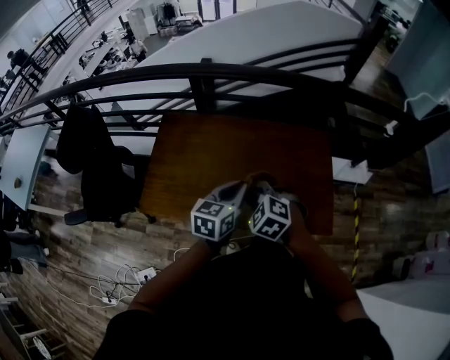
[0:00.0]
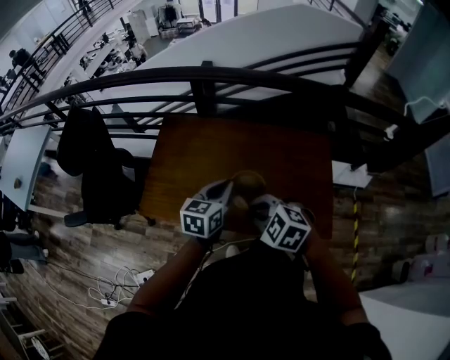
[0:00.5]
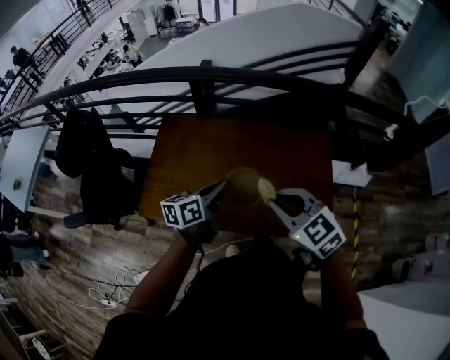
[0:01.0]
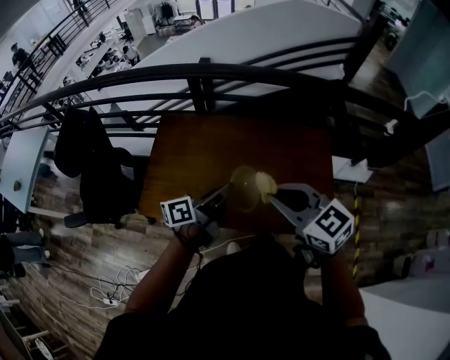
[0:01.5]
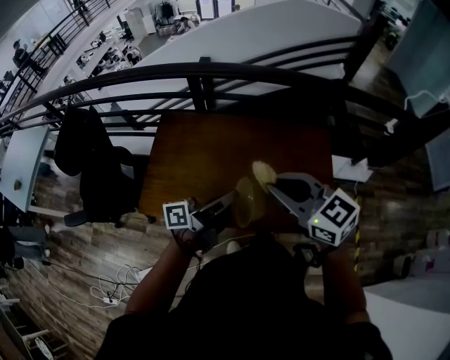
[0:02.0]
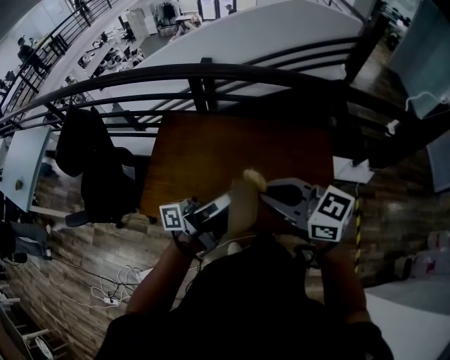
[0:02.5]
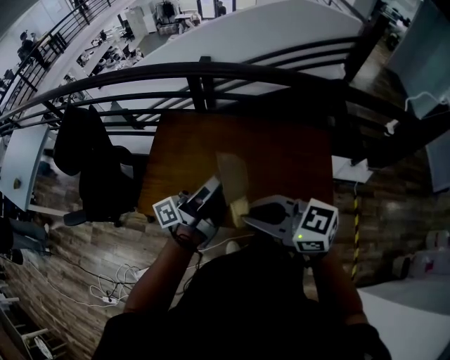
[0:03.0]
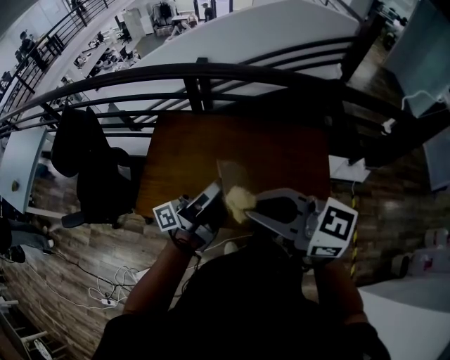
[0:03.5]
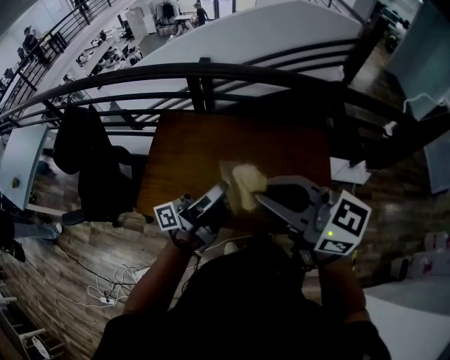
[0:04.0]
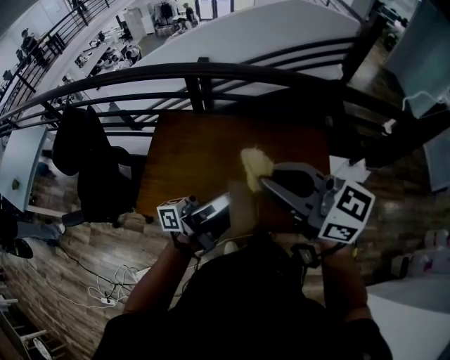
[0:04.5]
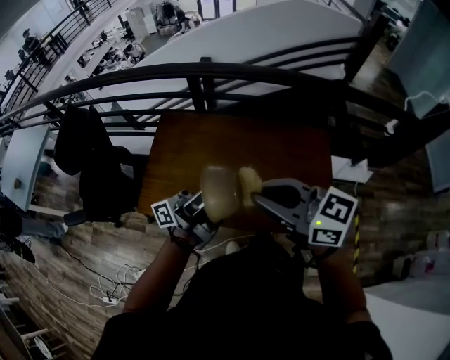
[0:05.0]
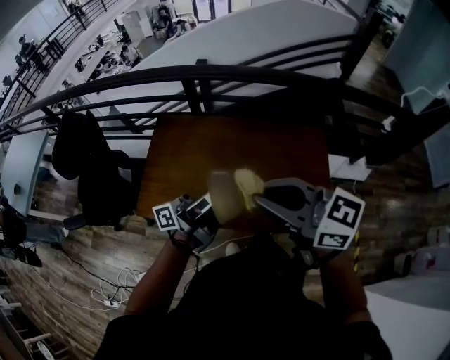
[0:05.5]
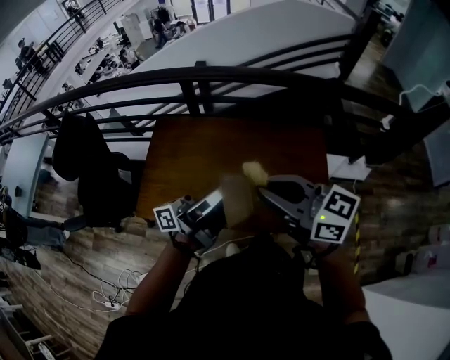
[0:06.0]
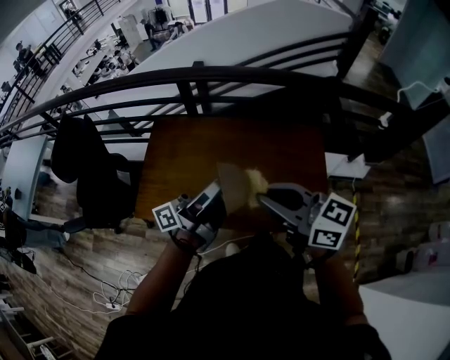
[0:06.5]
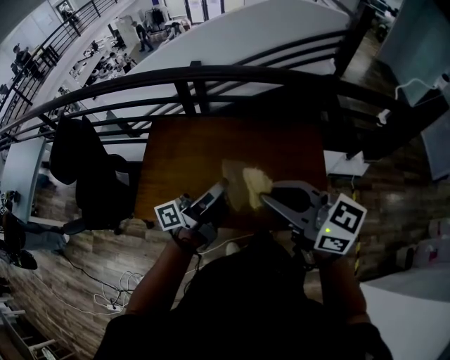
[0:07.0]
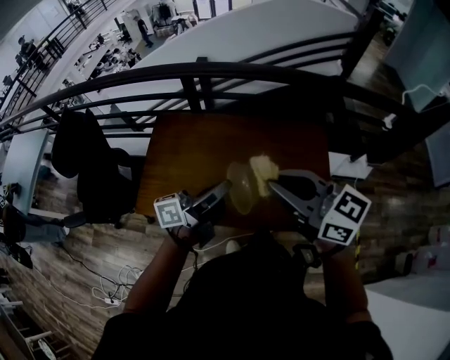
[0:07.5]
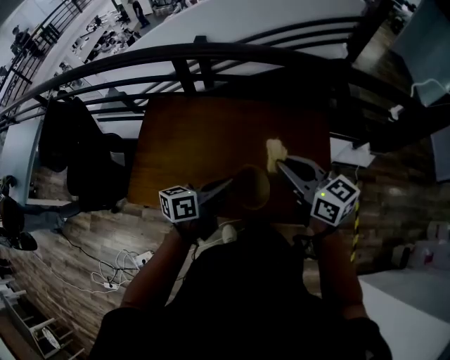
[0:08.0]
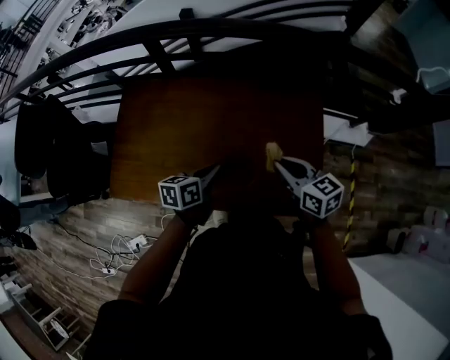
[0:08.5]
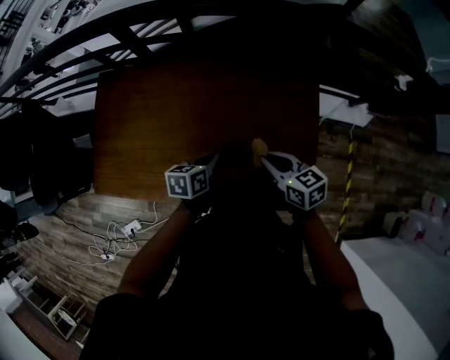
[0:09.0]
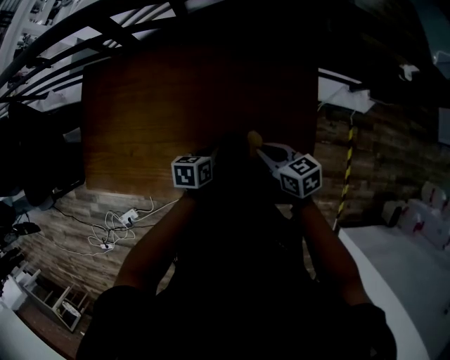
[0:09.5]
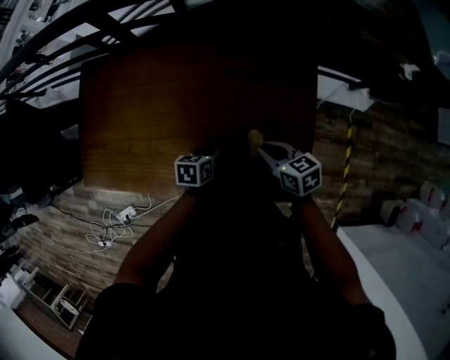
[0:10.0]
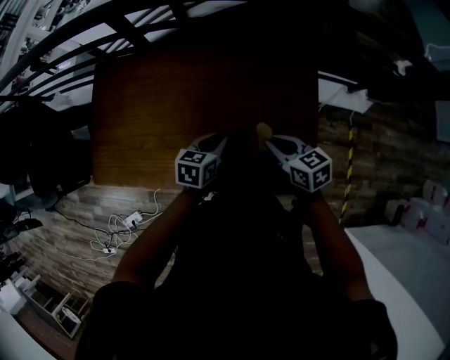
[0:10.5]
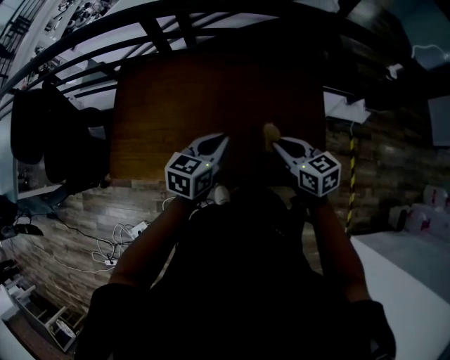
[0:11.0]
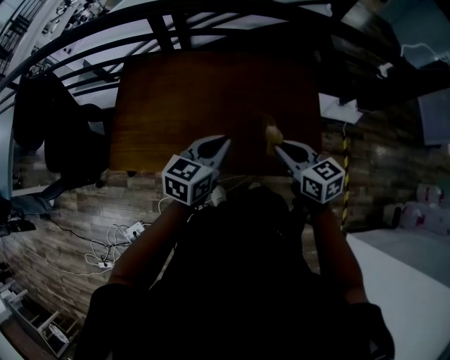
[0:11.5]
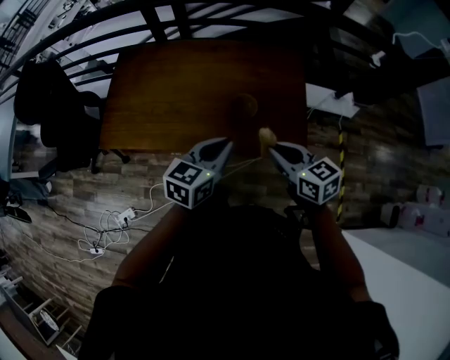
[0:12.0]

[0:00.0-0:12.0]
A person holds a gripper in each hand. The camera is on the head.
0:00.0 to 0:02.0: The left gripper changes place by roughly 5 cm, and angles its fingers upward, by about 40 degrees; the right gripper shifts about 15 cm upward, and angles its fingers upward, by approximately 40 degrees.
0:02.0 to 0:04.0: Both grippers move upward, some 10 cm. The left gripper rotates some 20 degrees.
0:04.0 to 0:06.0: The right gripper changes place by about 5 cm.
0:06.0 to 0:08.0: The right gripper heads downward, to the right and forward, covering about 15 cm. Meanwhile the left gripper heads downward, covering about 15 cm, and tilts its fingers approximately 50 degrees downward.
0:08.0 to 0:10.0: Both grippers travel together downward and to the right, approximately 35 cm. The left gripper tips its fingers downward by some 40 degrees, while the right gripper swivels approximately 30 degrees.
0:10.0 to 0:12.0: The left gripper heads upward and backward, covering about 35 cm, and turns by some 40 degrees. Meanwhile the right gripper heads backward and upward, covering roughly 30 cm.

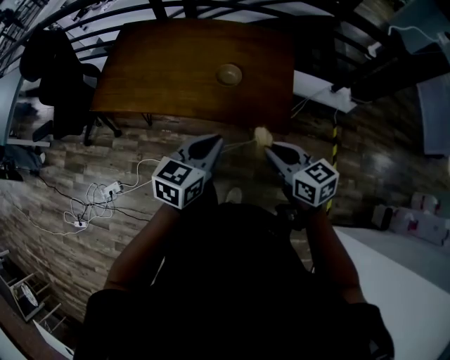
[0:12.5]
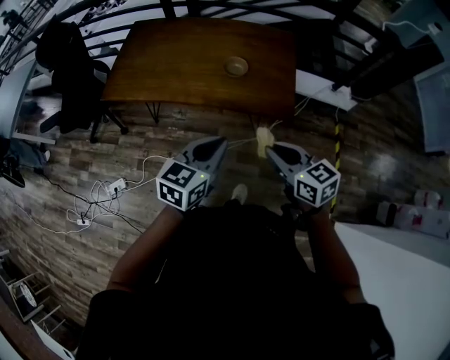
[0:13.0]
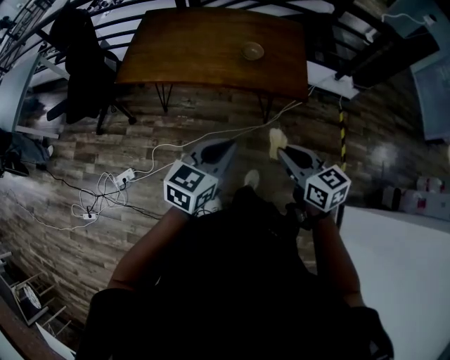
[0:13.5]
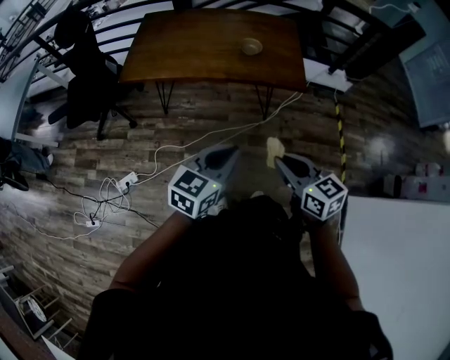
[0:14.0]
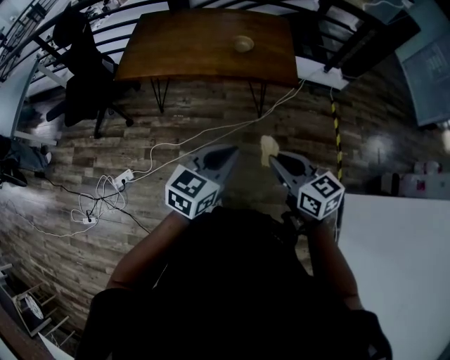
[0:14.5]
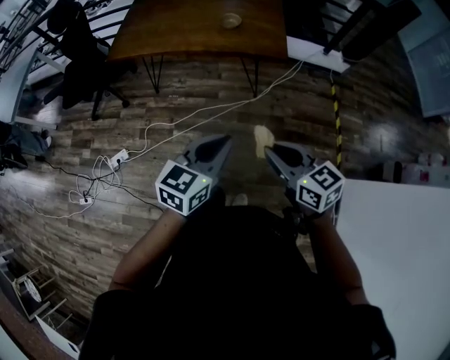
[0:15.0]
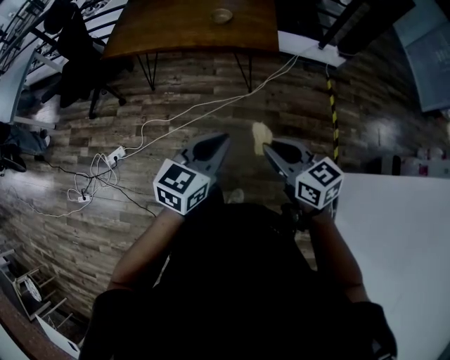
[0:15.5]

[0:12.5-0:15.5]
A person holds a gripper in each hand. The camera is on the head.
0:12.5 to 0:14.0: The two grippers go about 30 cm backward and to the left.
0:14.0 to 0:15.5: The right gripper moves backward and to the right, roughly 20 cm; the left gripper travels to the right and backward by roughly 20 cm.

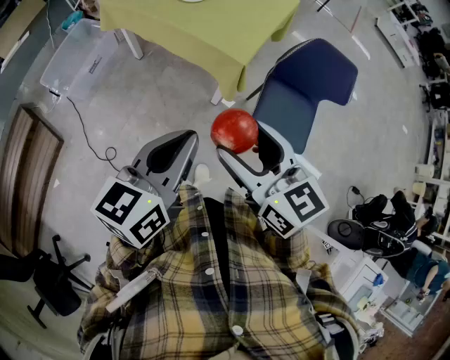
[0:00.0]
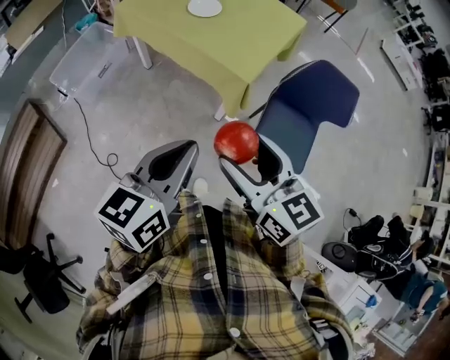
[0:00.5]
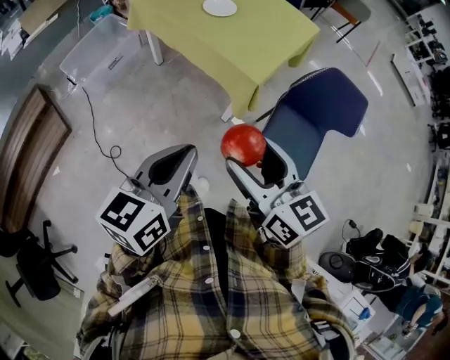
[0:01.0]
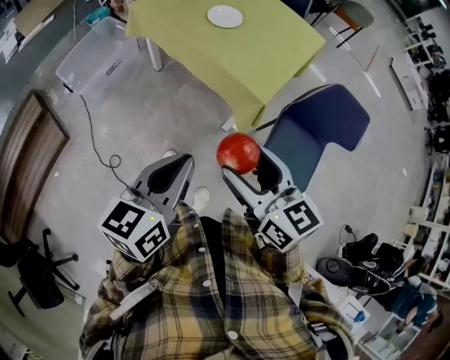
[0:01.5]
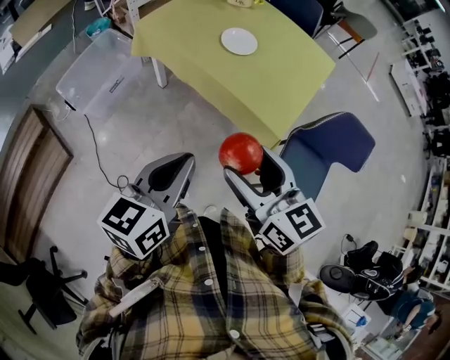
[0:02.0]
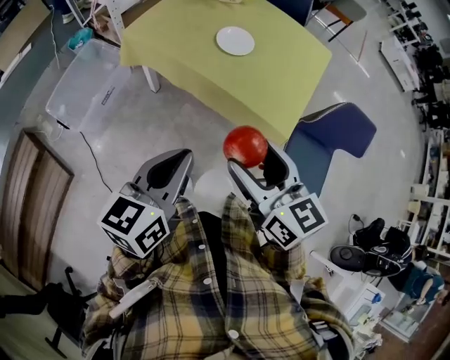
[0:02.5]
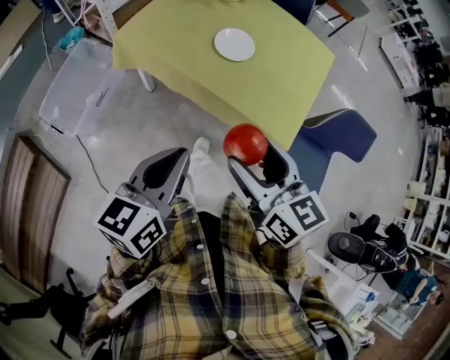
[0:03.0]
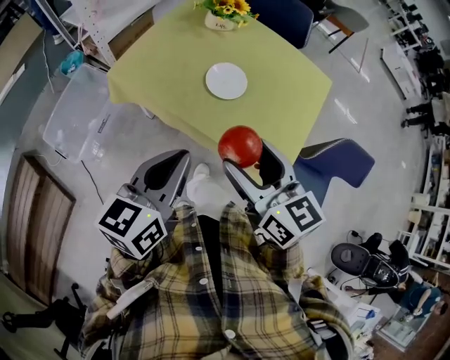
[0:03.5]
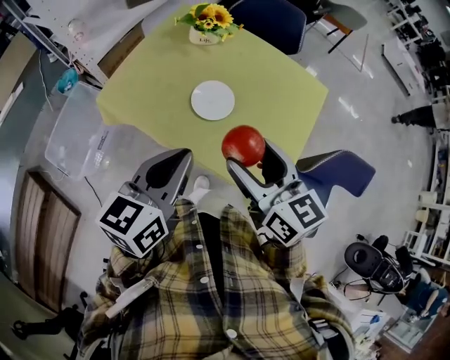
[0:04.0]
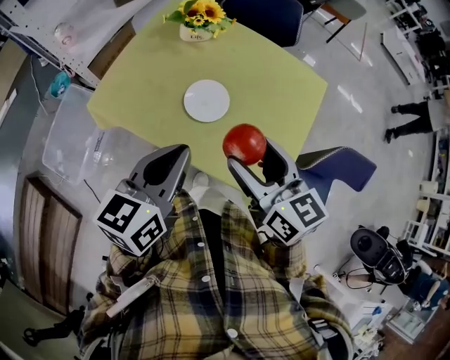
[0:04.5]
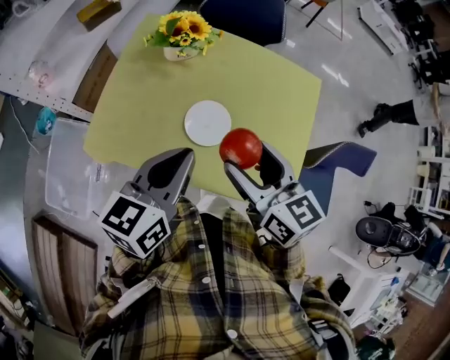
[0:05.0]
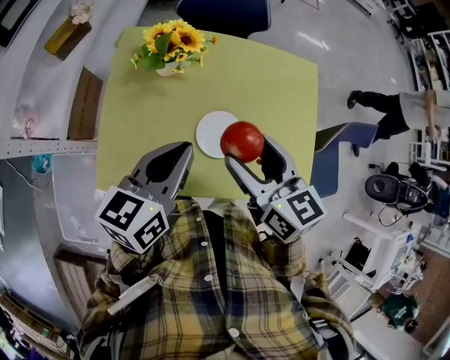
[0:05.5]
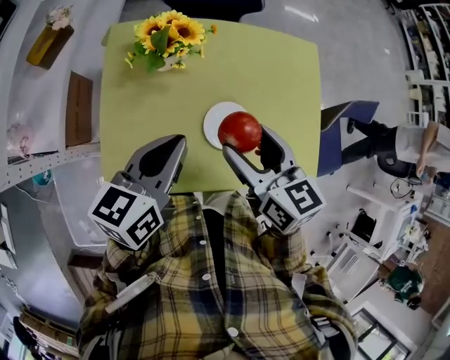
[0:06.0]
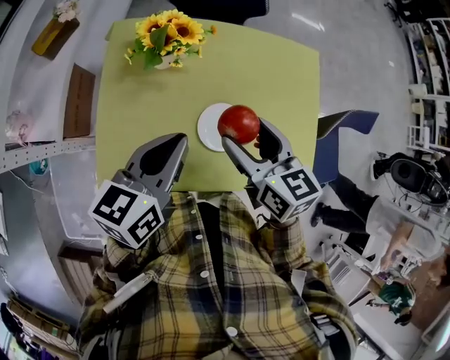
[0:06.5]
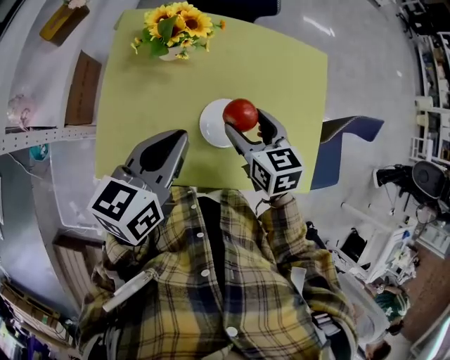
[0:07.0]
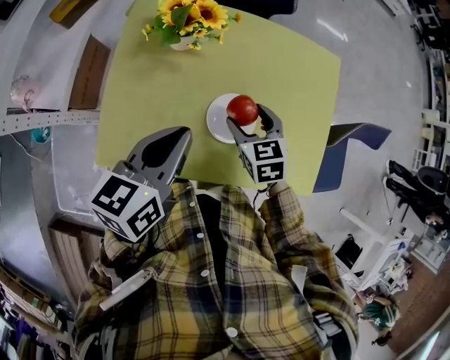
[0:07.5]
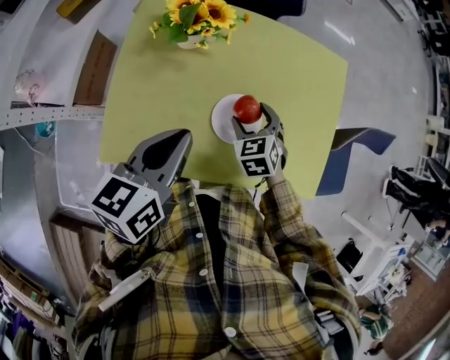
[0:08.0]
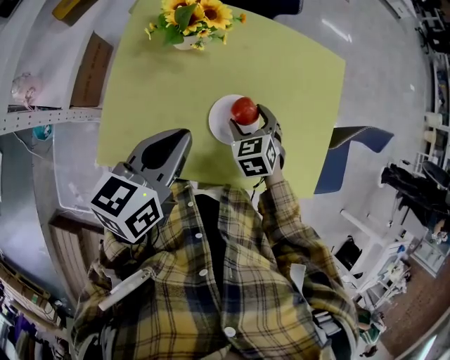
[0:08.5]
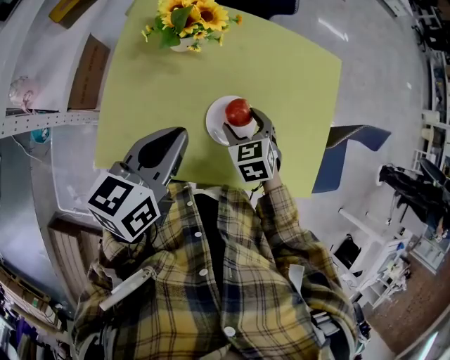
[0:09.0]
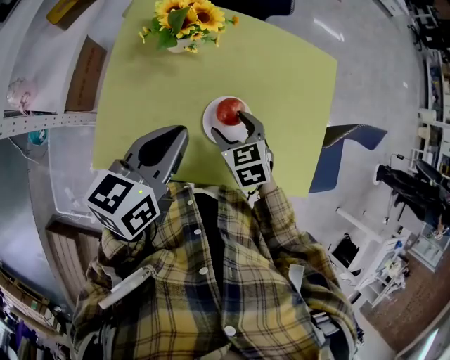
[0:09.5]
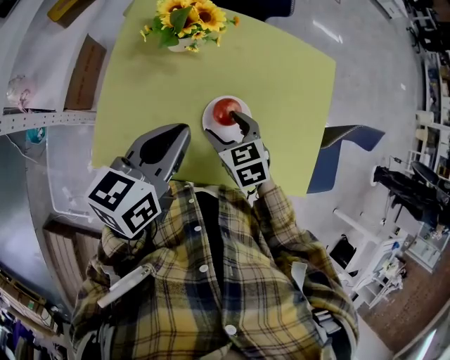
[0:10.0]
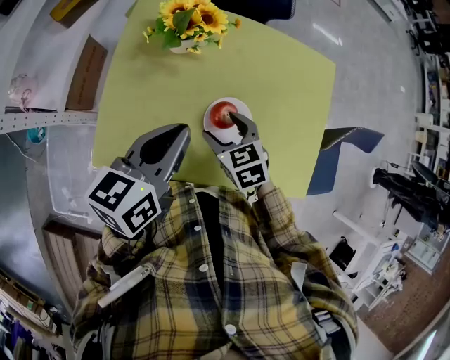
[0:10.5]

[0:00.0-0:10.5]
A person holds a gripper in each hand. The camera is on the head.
0:00.0 to 0:02.0: Both grippers travel together forward and to the left, approximately 20 cm.
0:02.0 to 0:04.0: Both grippers move forward, approximately 30 cm.
0:04.0 to 0:06.5: The right gripper changes place by approximately 20 cm, and swivels approximately 30 degrees; the left gripper ends up roughly 25 cm from where it was, and changes its angle by some 30 degrees.
0:06.5 to 0:08.5: The right gripper goes approximately 20 cm downward, and turns by approximately 40 degrees.
0:08.5 to 0:10.5: The right gripper heads to the left, covering about 5 cm.

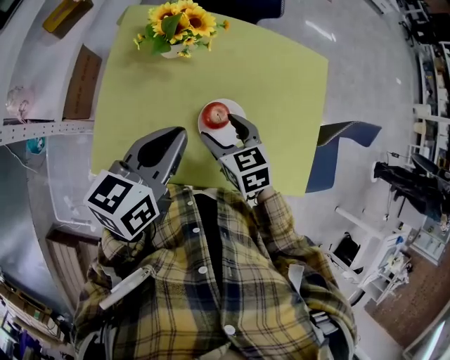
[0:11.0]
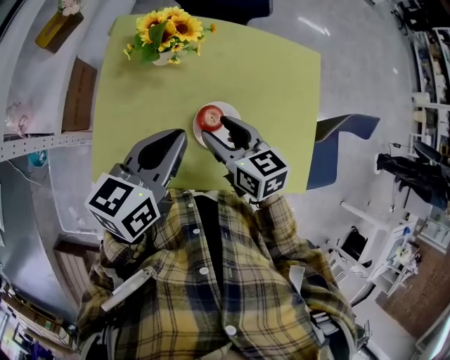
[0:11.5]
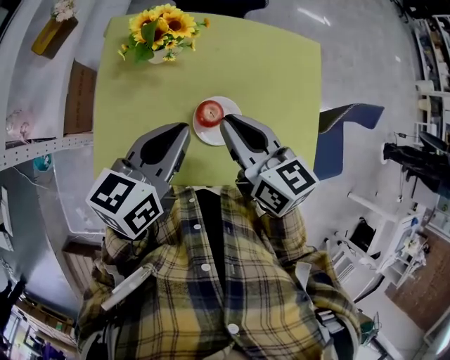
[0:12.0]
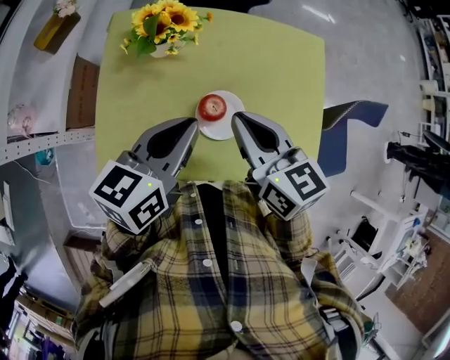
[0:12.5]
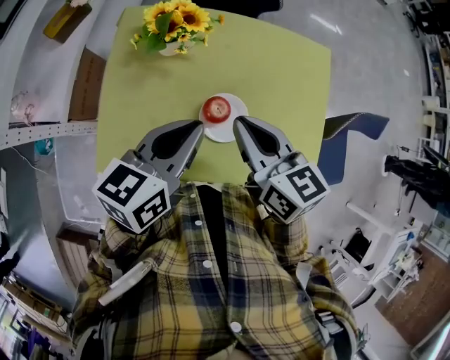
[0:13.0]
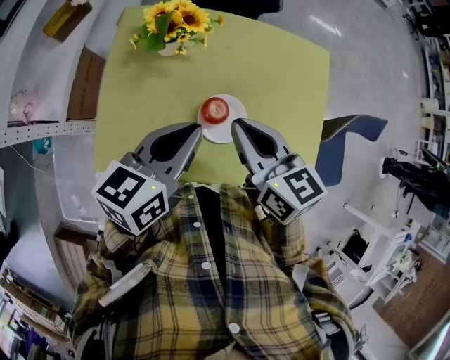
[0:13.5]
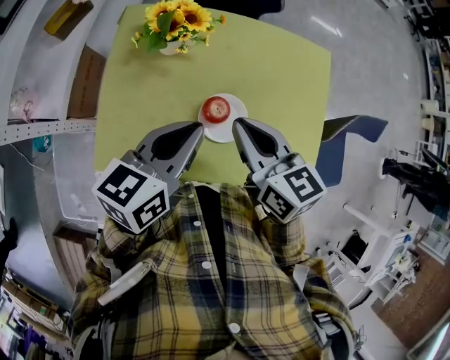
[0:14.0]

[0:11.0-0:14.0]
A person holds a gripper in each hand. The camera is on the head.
0:11.0 to 0:12.5: The right gripper is displaced upward by about 15 cm, turns by about 30 degrees, and closes its fingers.
0:12.5 to 0:14.0: The two grippers keep their place.
